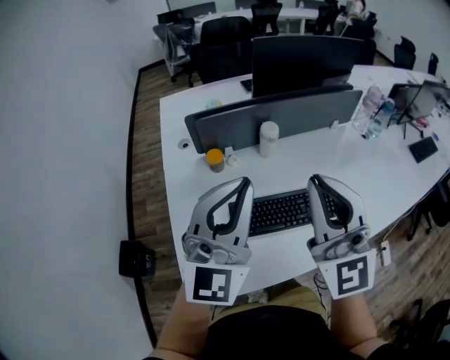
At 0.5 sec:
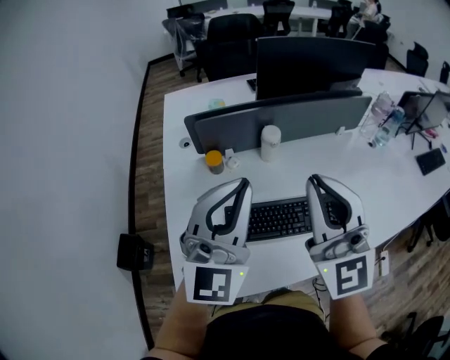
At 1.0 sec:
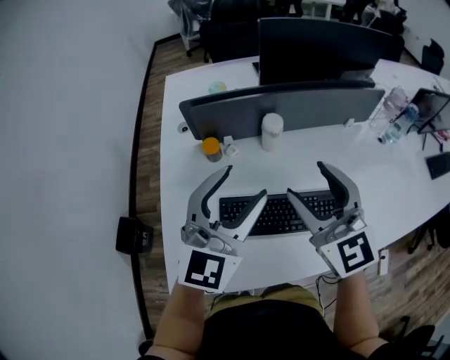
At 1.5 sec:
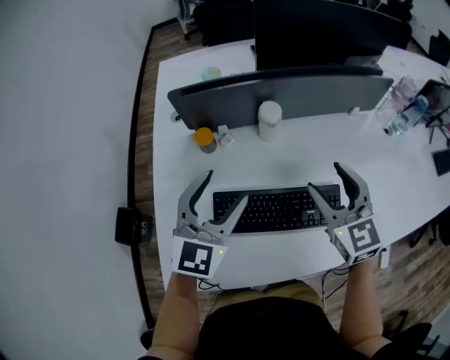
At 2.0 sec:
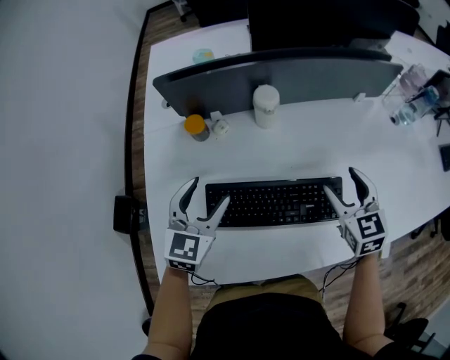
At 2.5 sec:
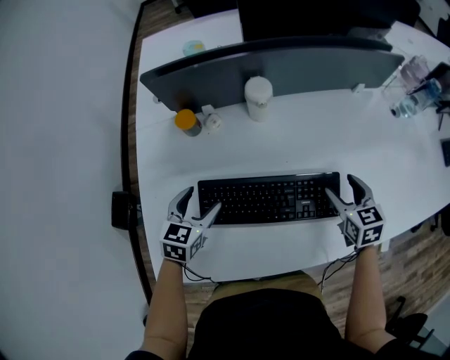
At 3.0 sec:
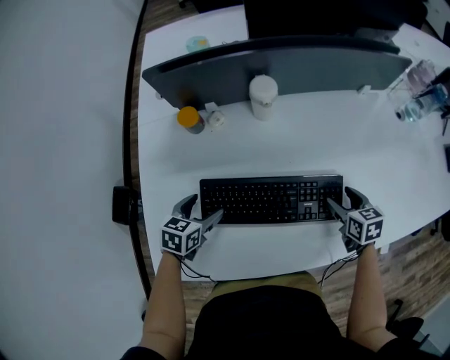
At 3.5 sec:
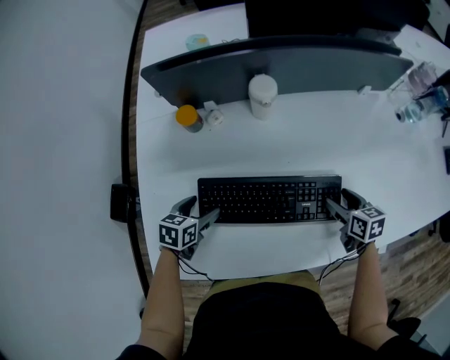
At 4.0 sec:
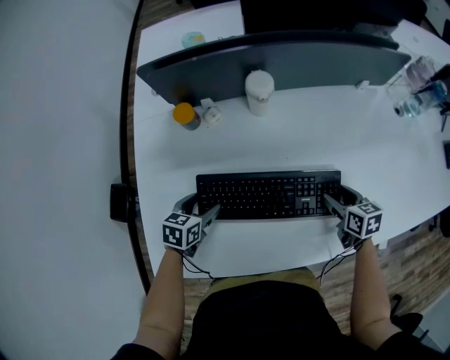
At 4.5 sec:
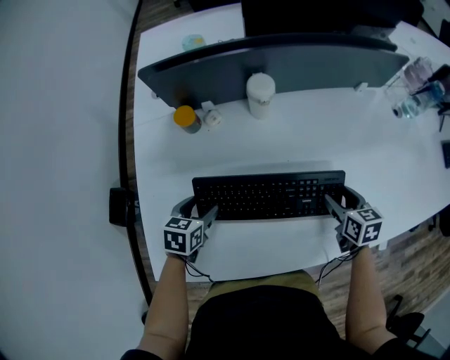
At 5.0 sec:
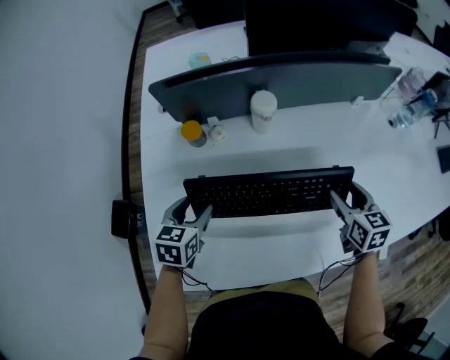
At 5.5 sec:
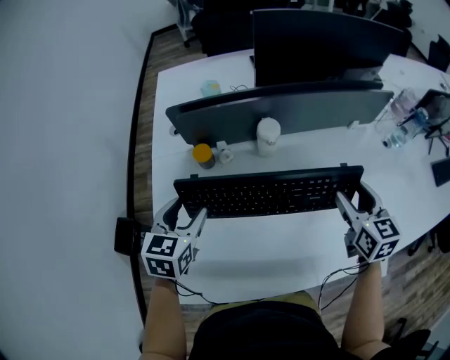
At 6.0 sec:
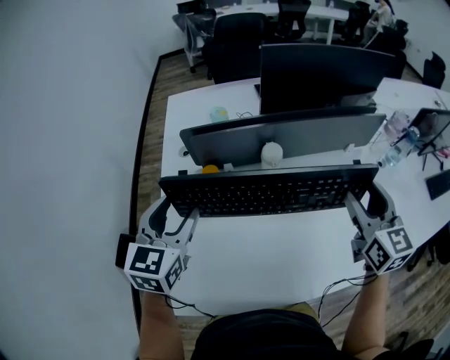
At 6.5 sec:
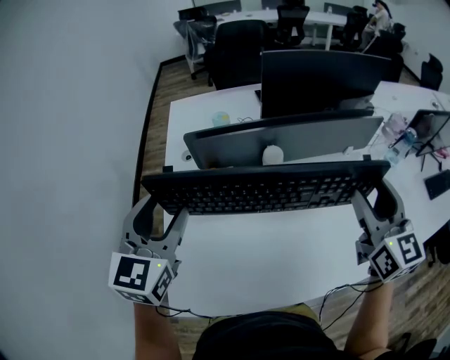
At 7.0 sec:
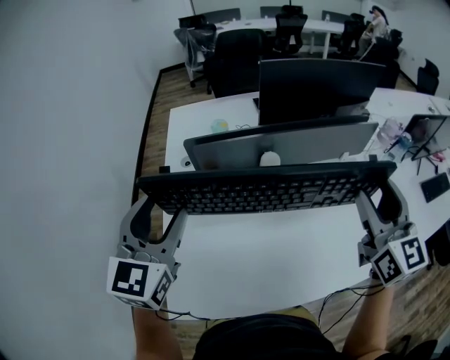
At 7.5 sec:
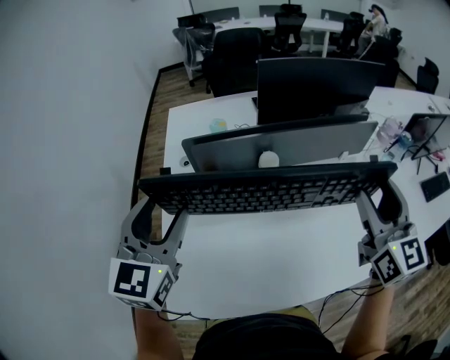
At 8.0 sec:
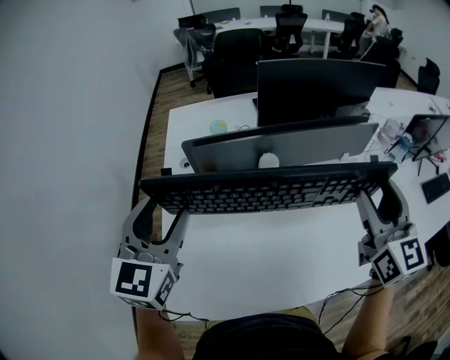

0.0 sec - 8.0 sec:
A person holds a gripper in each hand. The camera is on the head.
0.0 sec - 2.0 sec: The right gripper heads downward, to the right and forward, covering approximately 40 cm, angles its fingers downward, by about 50 degrees, and opens; the left gripper goes about 30 cm downward and forward, tilts its fingers about 40 degrees downward, and opens.
2.0 sec - 4.0 sec: Both grippers travel together downward, some 15 cm. The left gripper turns by roughly 40 degrees. The right gripper changes its angle by roughly 30 degrees.
4.0 sec - 6.0 sec: The two grippers go about 35 cm upward. The left gripper angles its fingers upward, by approximately 30 degrees. Meanwhile the right gripper angles its fingers upward, by about 30 degrees.
6.0 sec - 8.0 sec: Both grippers travel together upward, about 10 cm.

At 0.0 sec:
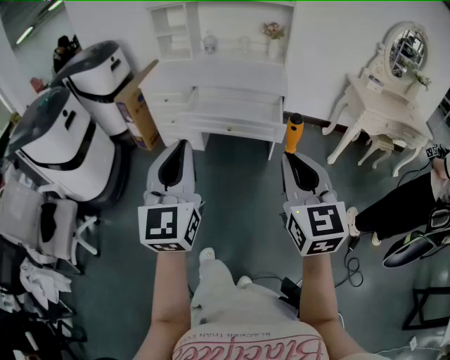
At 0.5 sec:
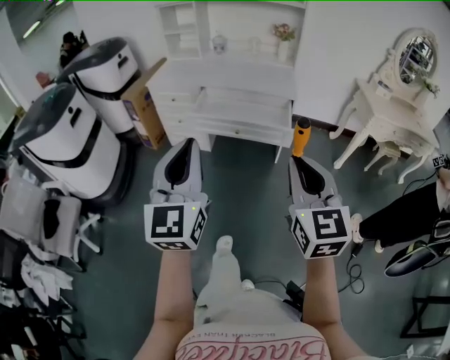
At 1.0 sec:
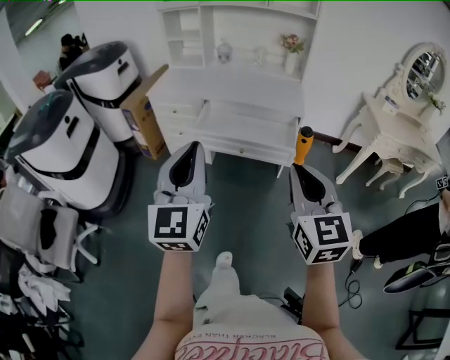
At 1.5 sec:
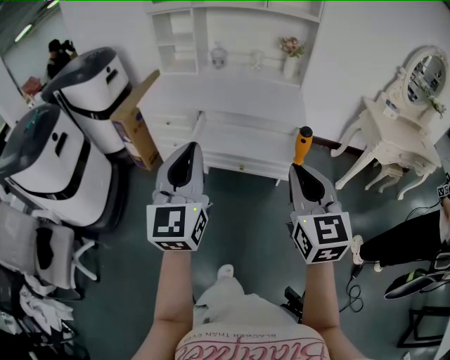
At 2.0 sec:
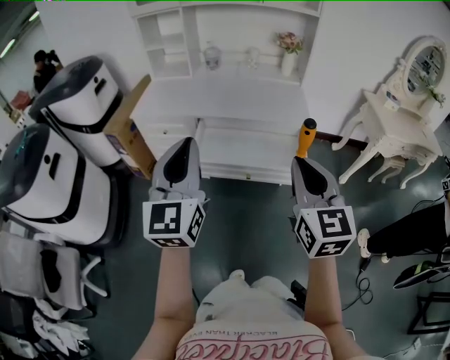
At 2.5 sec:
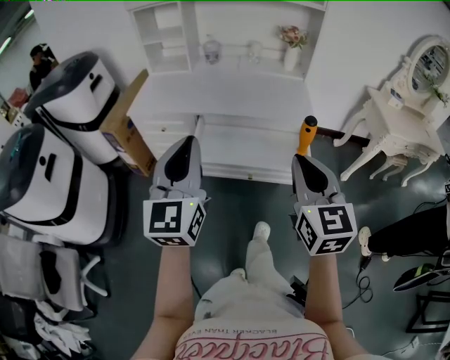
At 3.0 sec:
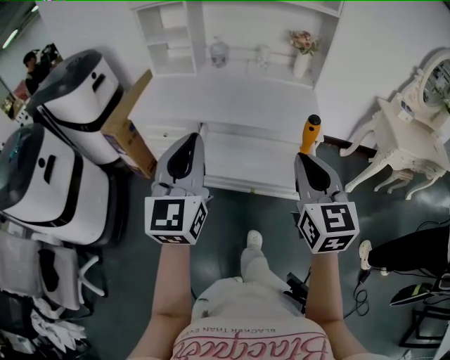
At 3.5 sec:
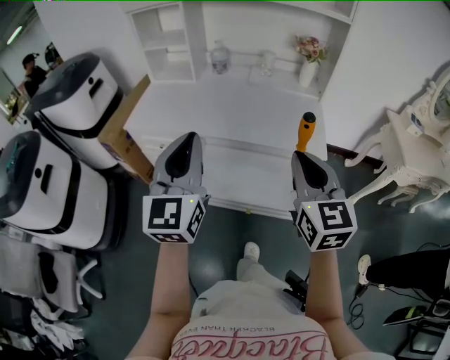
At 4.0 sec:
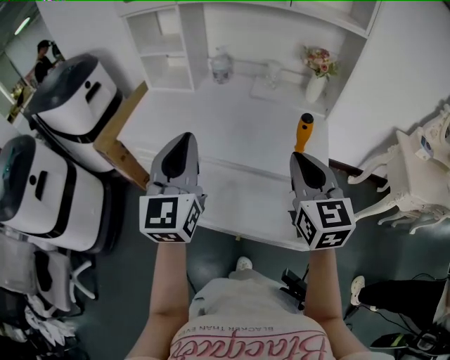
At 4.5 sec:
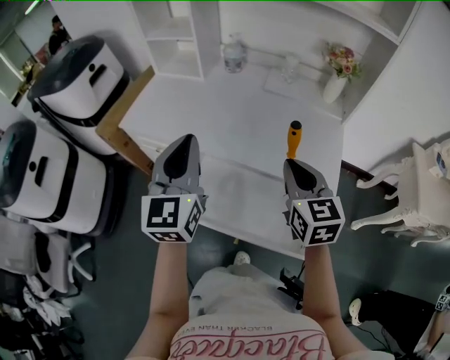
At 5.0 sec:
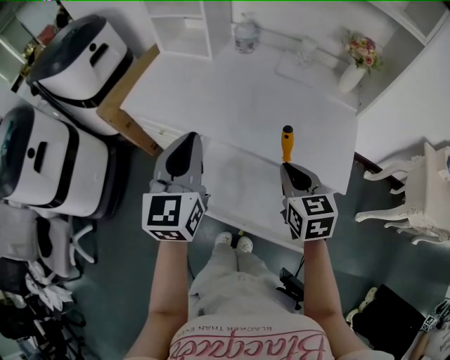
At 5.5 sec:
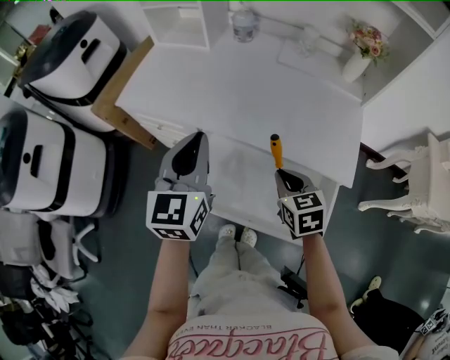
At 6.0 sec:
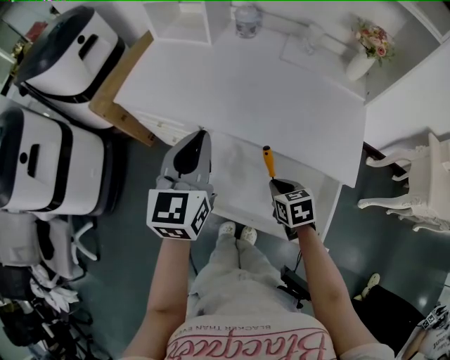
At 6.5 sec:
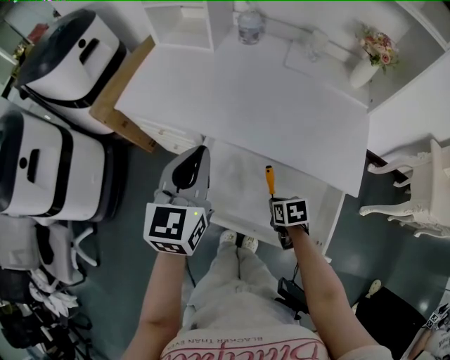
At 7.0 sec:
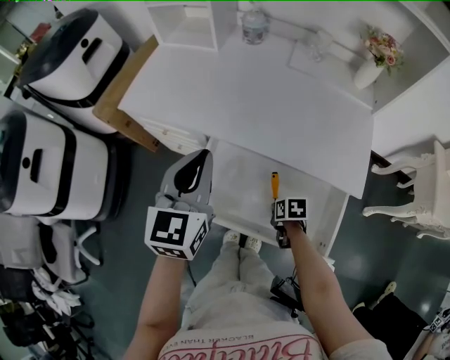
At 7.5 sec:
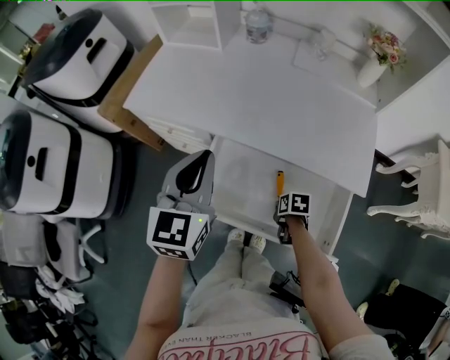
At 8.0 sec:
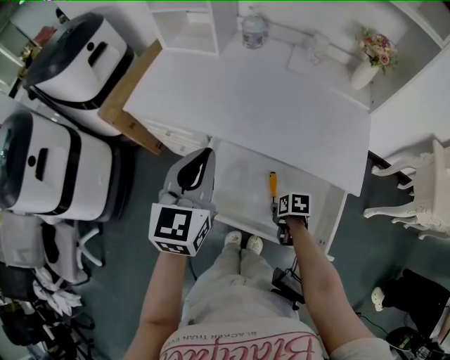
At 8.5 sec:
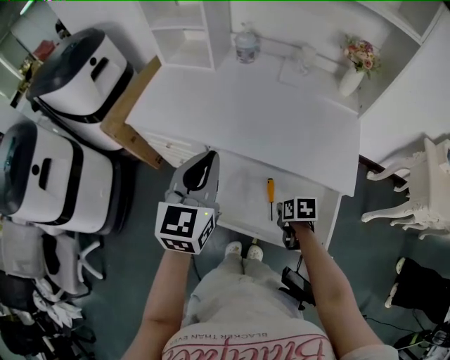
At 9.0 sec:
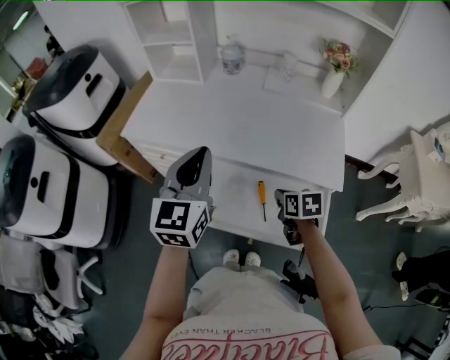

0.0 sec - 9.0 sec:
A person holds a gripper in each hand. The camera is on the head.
0.0 sec - 2.0 sec: Both grippers move forward, about 30 cm.
2.0 sec - 4.5 sec: The grippers both shift forward by some 35 cm. The right gripper turns by some 20 degrees.
4.5 sec - 7.0 sec: The right gripper travels downward by some 35 cm, and angles its fingers downward, by approximately 50 degrees; the left gripper moves downward, some 10 cm.
7.0 sec - 9.0 sec: The right gripper shifts some 15 cm upward, rotates some 20 degrees, and opens, then closes once more. The left gripper shifts roughly 5 cm upward.

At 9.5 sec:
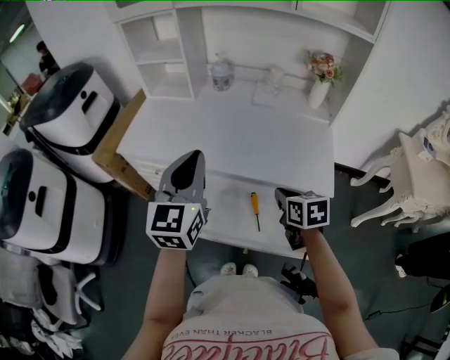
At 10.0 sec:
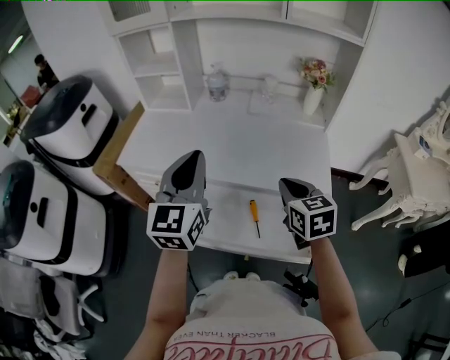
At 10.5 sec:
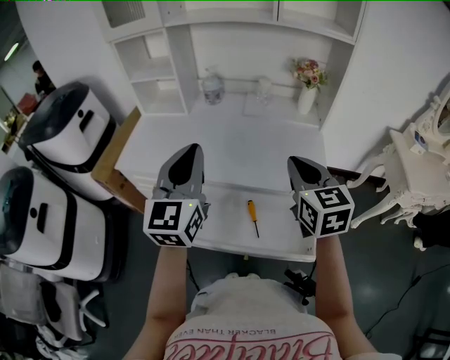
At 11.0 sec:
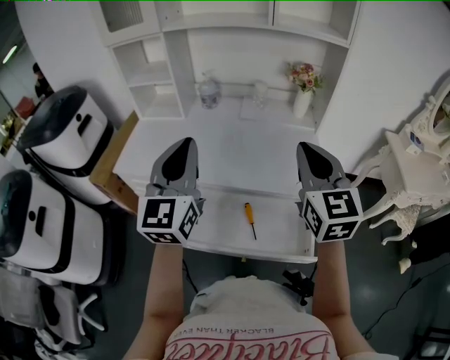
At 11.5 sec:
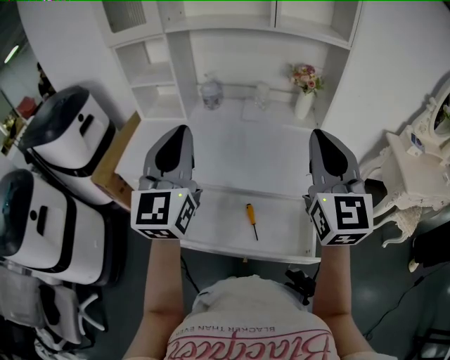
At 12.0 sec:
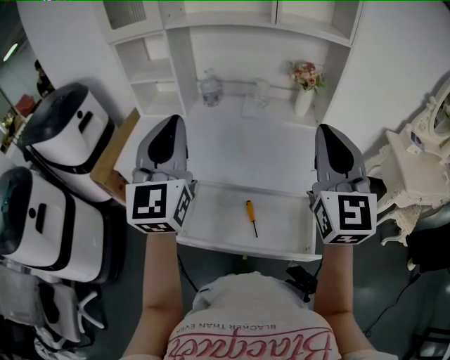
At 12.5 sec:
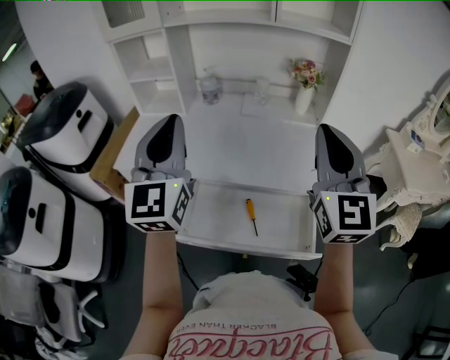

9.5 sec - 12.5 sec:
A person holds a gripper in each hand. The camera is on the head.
9.5 sec - 11.0 sec: The right gripper travels upward by roughly 25 cm, and points its fingers some 40 degrees further upward. The left gripper moves upward, approximately 10 cm.
11.0 sec - 12.5 sec: Both grippers move upward, about 5 cm.

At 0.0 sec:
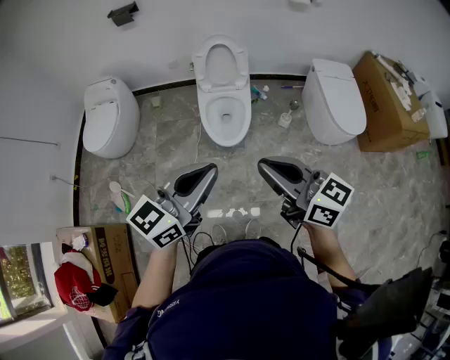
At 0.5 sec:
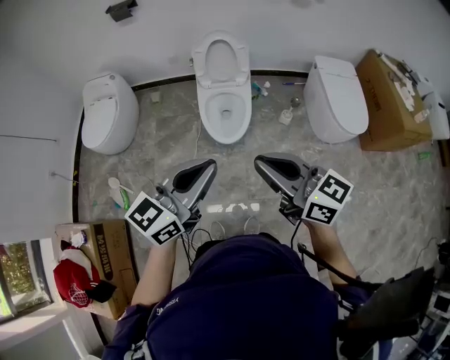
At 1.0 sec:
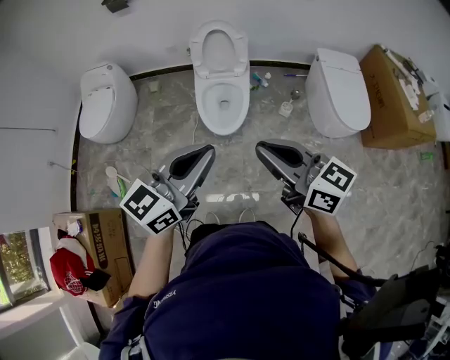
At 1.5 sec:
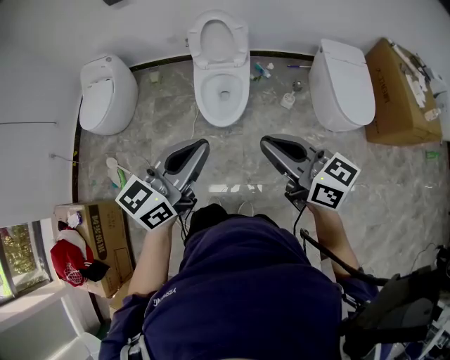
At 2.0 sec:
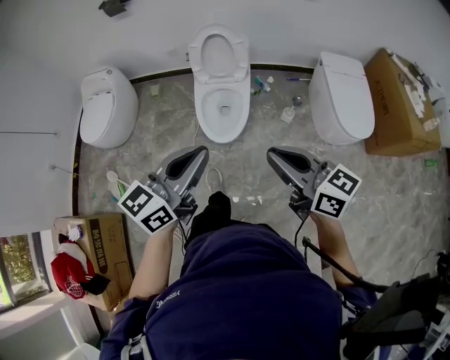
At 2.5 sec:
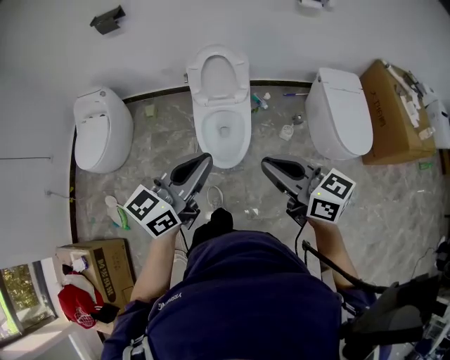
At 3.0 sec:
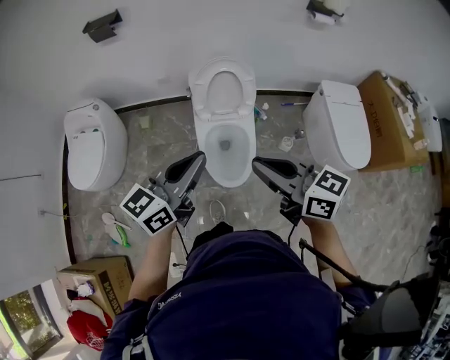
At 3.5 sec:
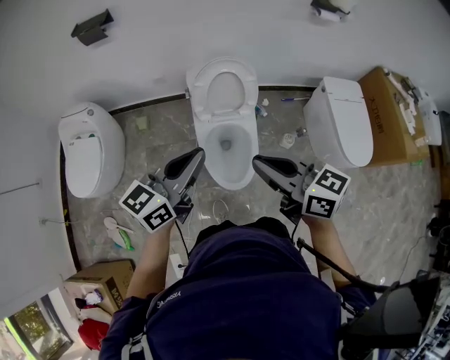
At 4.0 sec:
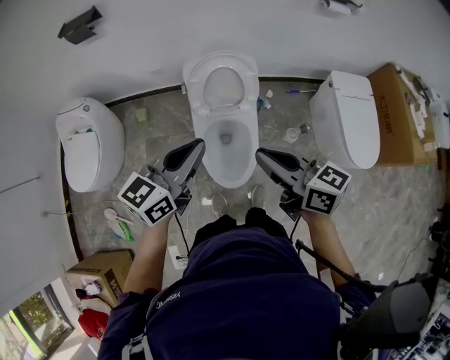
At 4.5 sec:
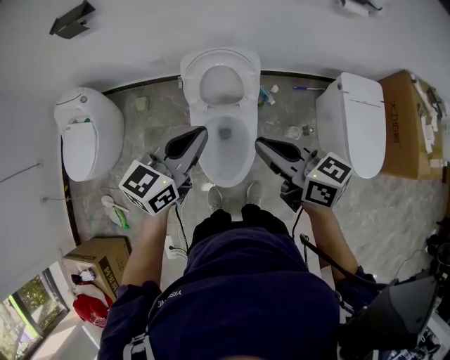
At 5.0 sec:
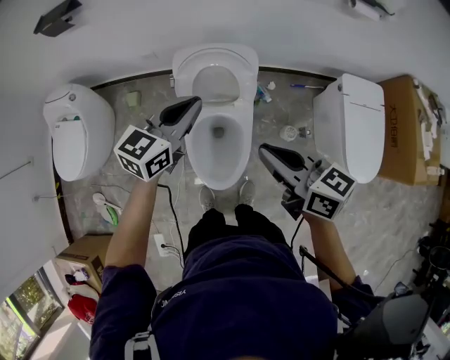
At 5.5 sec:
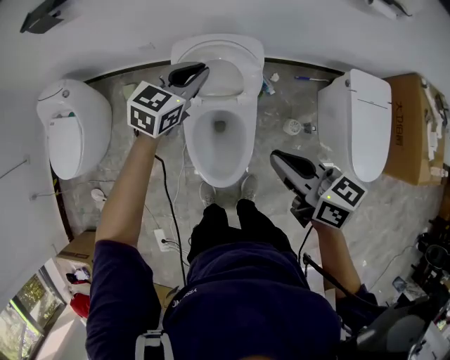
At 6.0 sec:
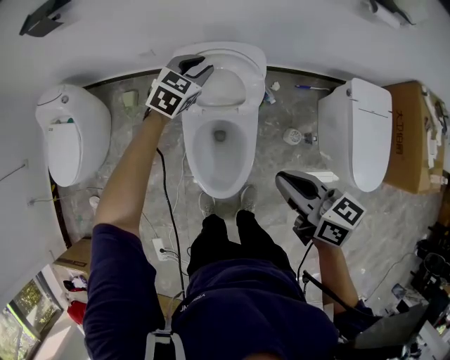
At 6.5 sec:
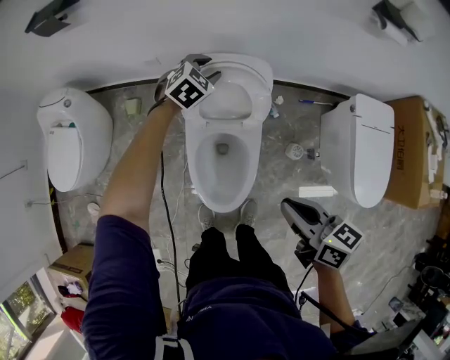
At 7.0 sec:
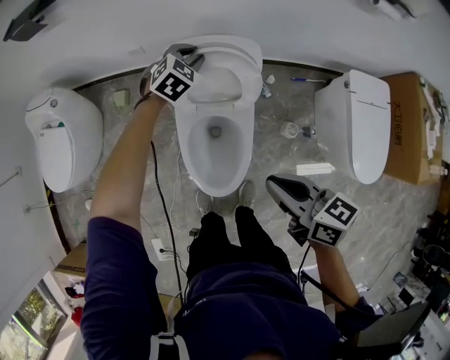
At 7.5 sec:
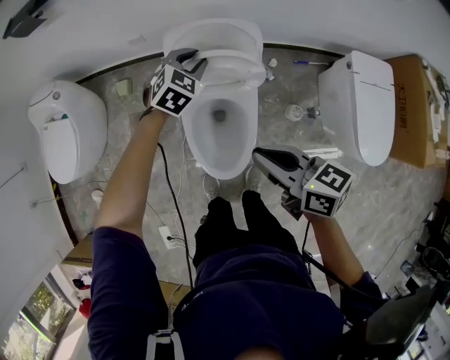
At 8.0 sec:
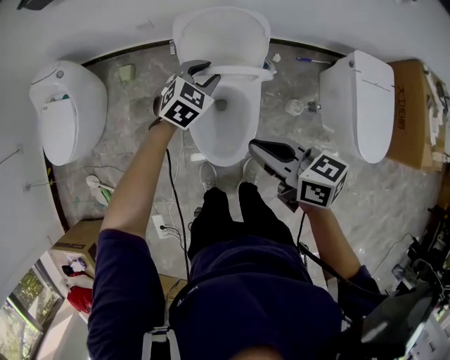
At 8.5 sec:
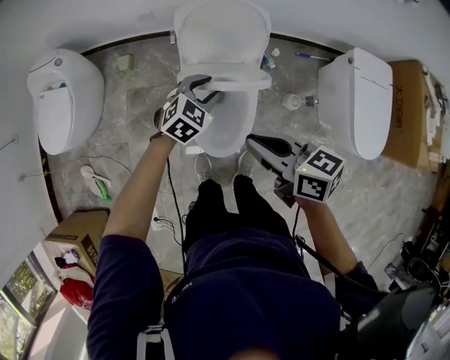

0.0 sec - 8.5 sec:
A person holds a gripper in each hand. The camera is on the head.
0.0 sec - 2.0 sec: The right gripper heads to the right and forward, covering approximately 15 cm, while the left gripper travels forward and to the right by about 10 cm.
2.0 sec - 4.0 sec: The grippers both shift forward by about 35 cm.
4.0 sec - 6.5 sec: The right gripper shifts roughly 20 cm downward, to the right and forward. Meanwhile the left gripper travels forward and downward by about 50 cm, tilts its fingers some 40 degrees downward, and opens its fingers.
6.5 sec - 8.5 sec: The right gripper heads to the left, covering about 10 cm. Meanwhile the left gripper goes some 25 cm backward.
